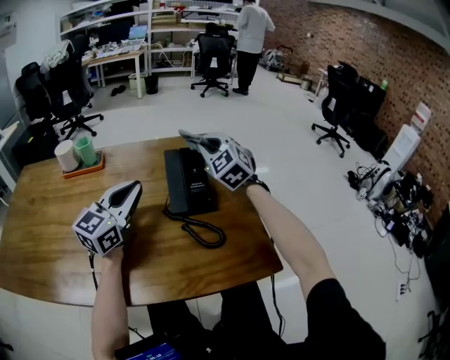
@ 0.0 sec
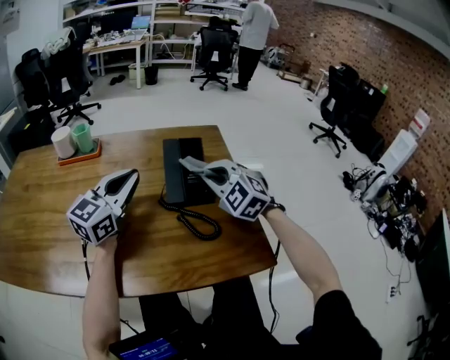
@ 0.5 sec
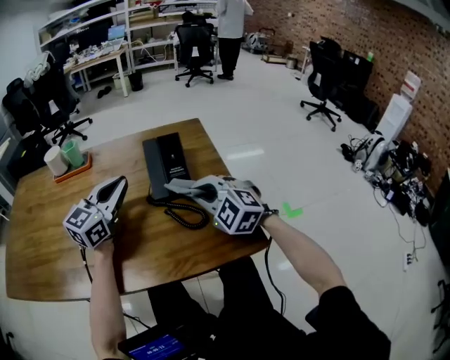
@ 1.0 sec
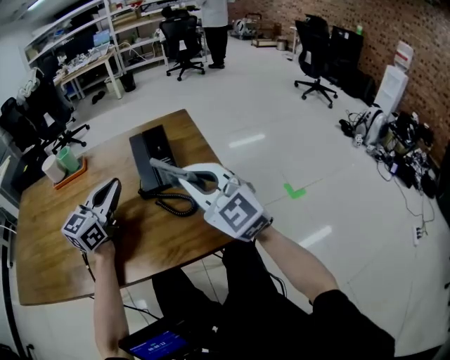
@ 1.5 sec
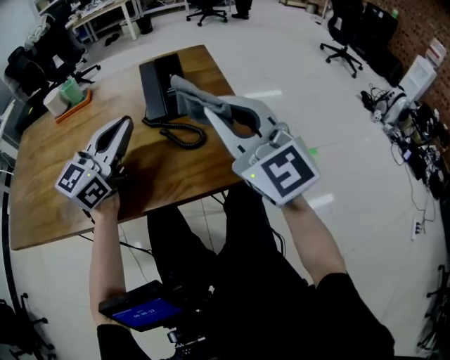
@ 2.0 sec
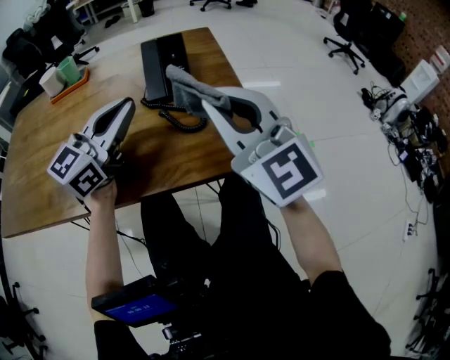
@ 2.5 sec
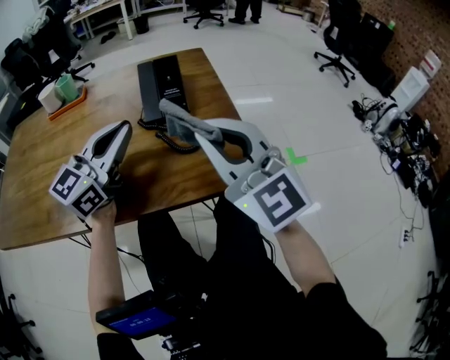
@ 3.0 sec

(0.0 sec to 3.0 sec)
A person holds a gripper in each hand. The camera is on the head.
0.0 sec - 1.5 sec: The right gripper moves backward, approximately 25 cm, and rotates about 30 degrees.
1.5 sec - 3.0 sec: Both grippers move backward, approximately 5 cm.

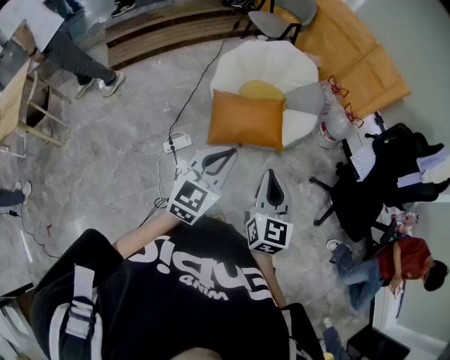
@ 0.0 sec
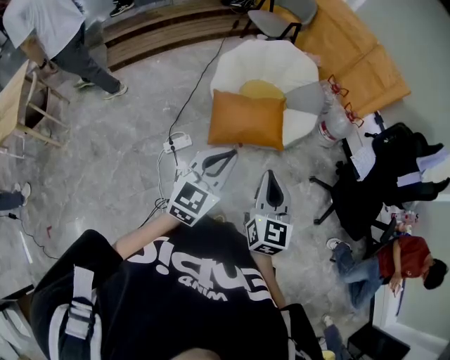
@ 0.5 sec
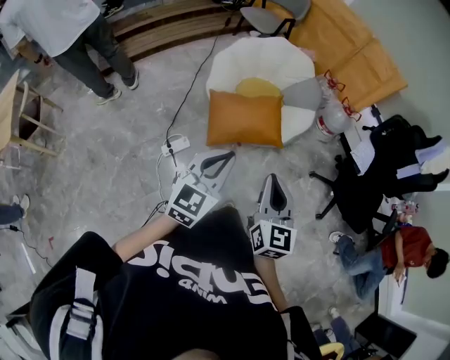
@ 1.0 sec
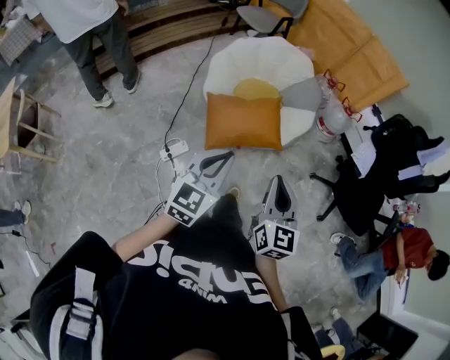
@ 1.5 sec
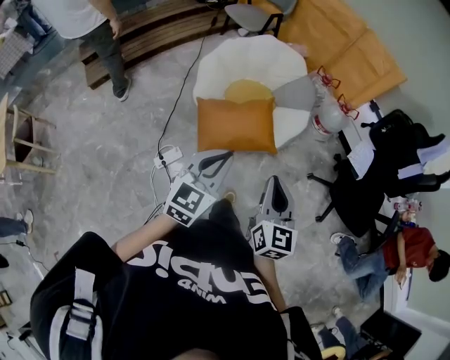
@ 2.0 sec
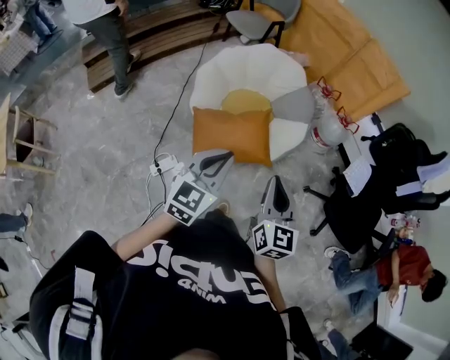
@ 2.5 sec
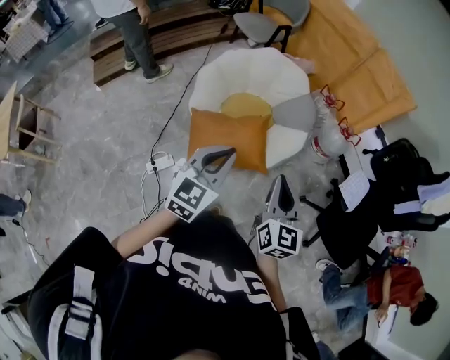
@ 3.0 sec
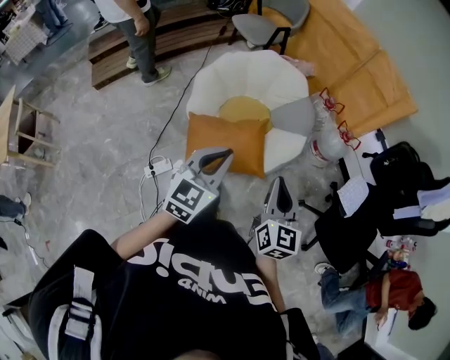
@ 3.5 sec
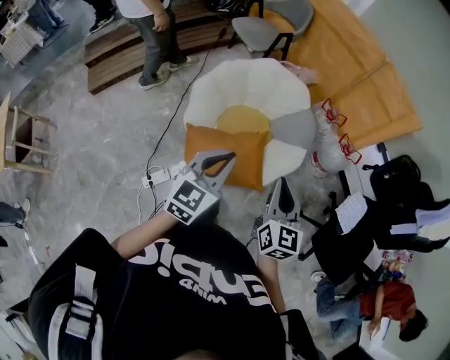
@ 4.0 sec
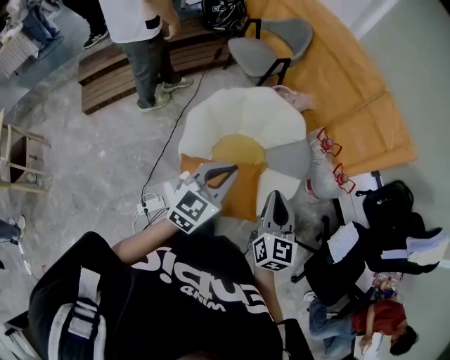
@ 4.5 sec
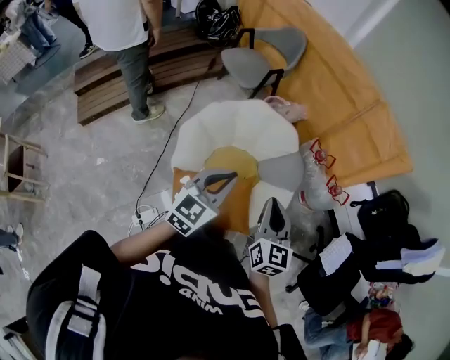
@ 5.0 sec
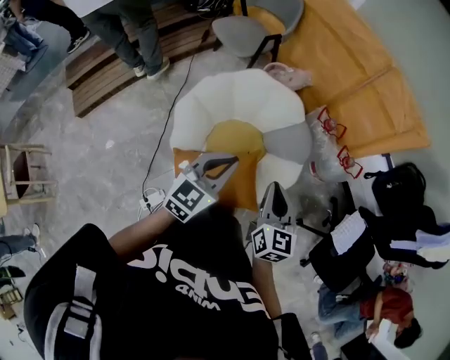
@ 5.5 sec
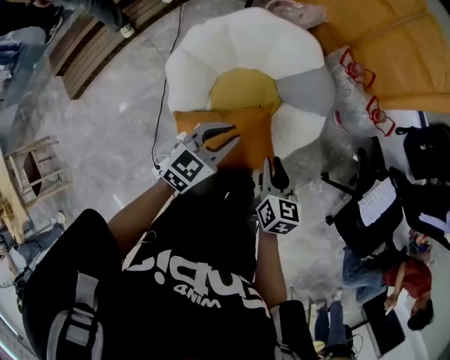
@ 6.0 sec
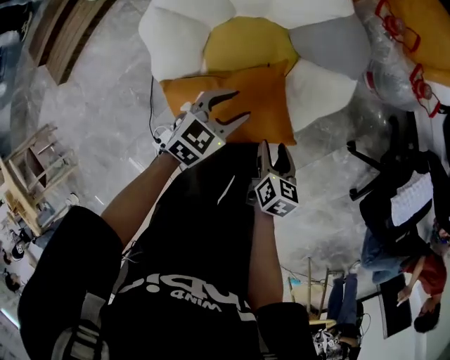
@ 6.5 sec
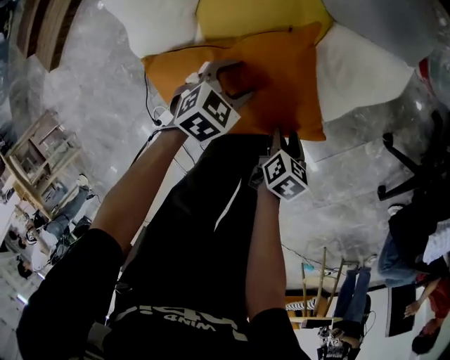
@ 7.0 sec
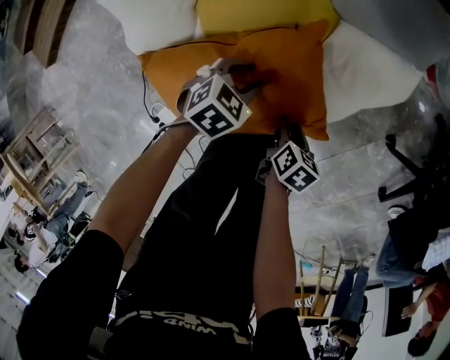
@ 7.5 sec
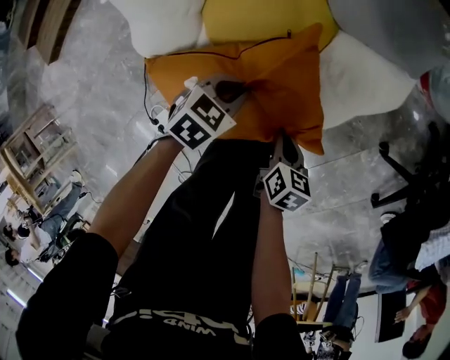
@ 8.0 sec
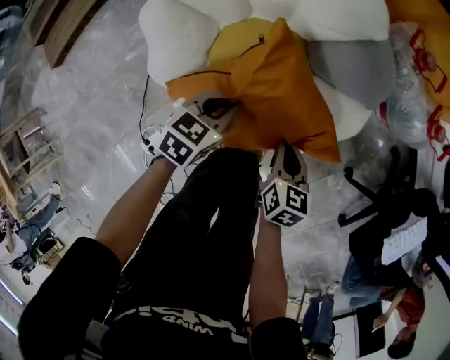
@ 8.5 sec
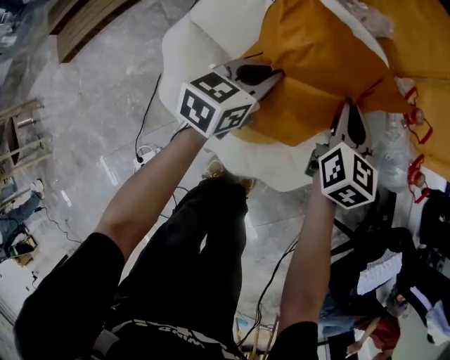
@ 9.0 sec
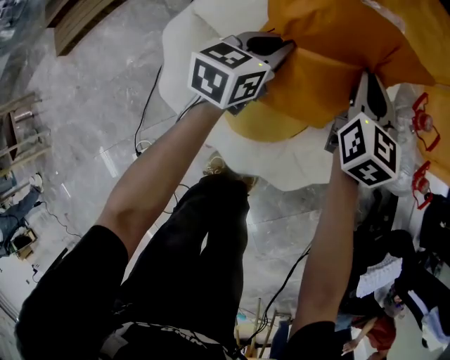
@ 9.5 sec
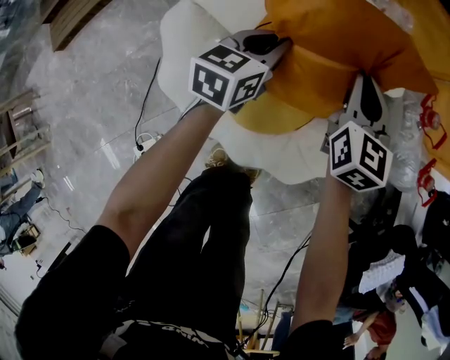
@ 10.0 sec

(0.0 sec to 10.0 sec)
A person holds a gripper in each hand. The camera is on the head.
0.0 sec - 2.0 sec: The two grippers go about 10 cm forward.
2.0 sec - 4.0 sec: Both grippers travel together forward, roughly 25 cm.
4.0 sec - 6.0 sec: The left gripper travels forward and downward by about 30 cm, and changes its angle by approximately 30 degrees; the right gripper travels downward and forward by approximately 30 cm, and rotates some 30 degrees.
6.0 sec - 8.0 sec: Both grippers travel together downward, roughly 40 cm. The left gripper changes its angle by approximately 40 degrees, and opens and closes again. Meanwhile the right gripper changes its angle by some 30 degrees, and opens, then closes again.
8.0 sec - 10.0 sec: The right gripper moves forward and upward, some 50 cm, and tilts its fingers approximately 30 degrees upward, while the left gripper heads forward, upward and to the left, covering about 35 cm, and tilts its fingers roughly 30 degrees upward.

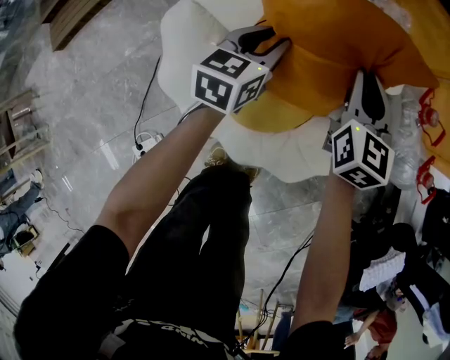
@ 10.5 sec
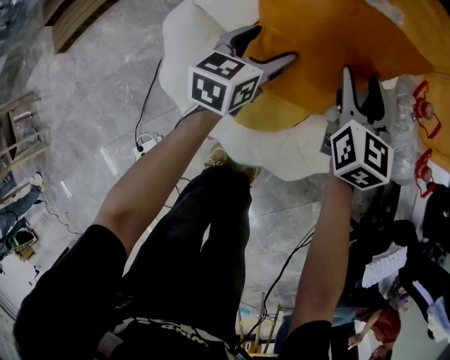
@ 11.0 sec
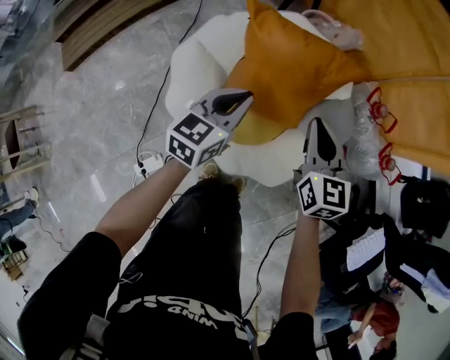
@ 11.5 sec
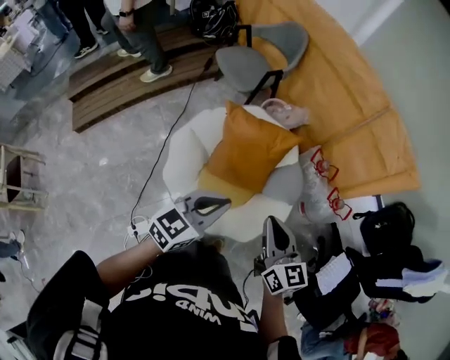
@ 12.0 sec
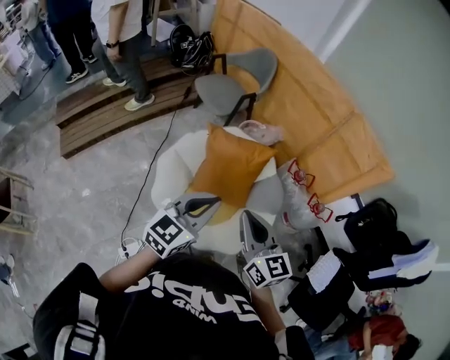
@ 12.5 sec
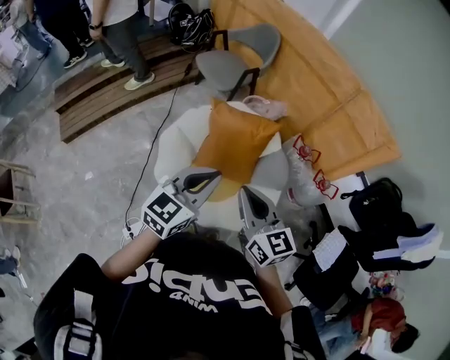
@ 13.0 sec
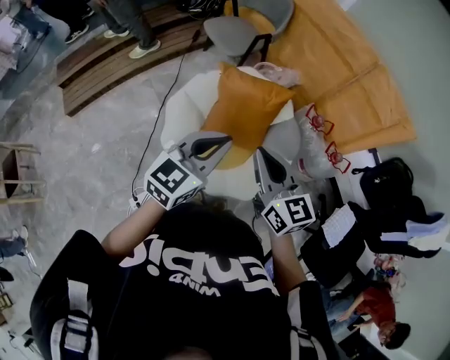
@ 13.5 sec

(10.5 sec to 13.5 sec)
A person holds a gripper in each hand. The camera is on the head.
10.5 sec - 12.0 sec: The two grippers go approximately 50 cm upward and backward. The left gripper turns by some 30 degrees, and opens and closes again. Meanwhile the right gripper swivels approximately 20 degrees, and opens, then closes again.
12.0 sec - 13.5 sec: The left gripper shifts about 5 cm upward; the right gripper travels to the left and upward by about 10 cm.

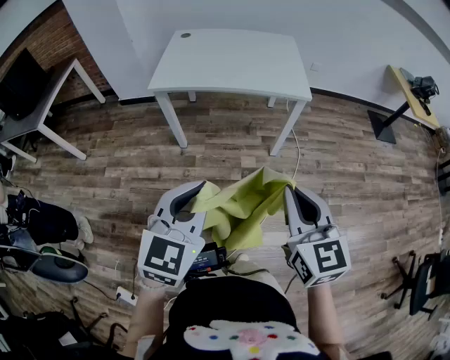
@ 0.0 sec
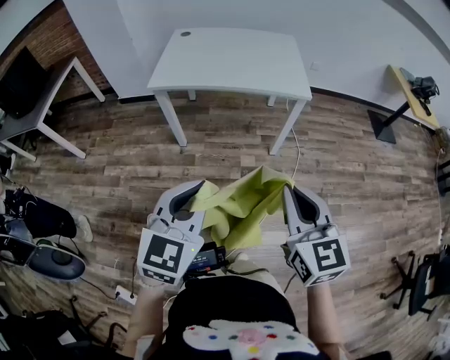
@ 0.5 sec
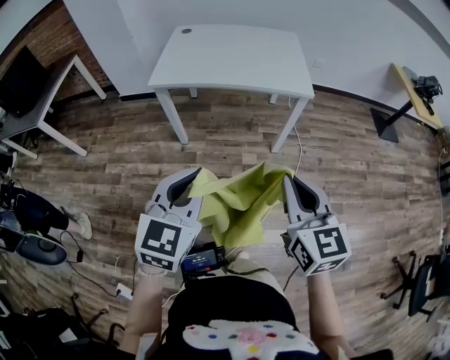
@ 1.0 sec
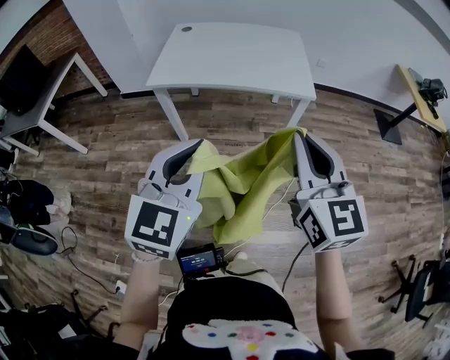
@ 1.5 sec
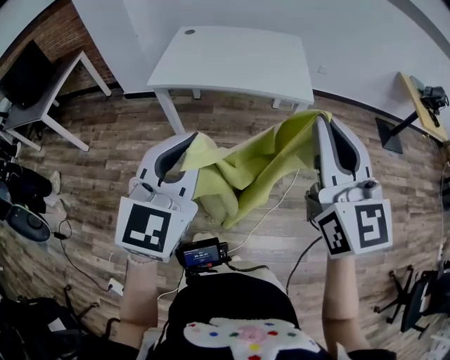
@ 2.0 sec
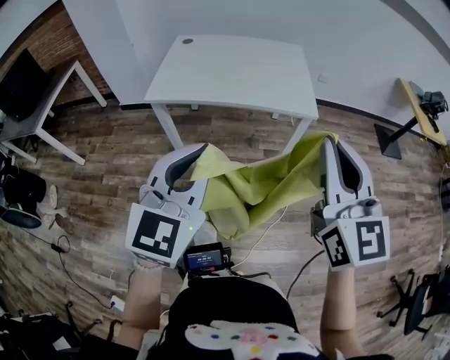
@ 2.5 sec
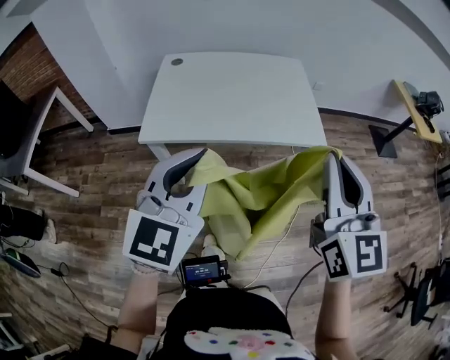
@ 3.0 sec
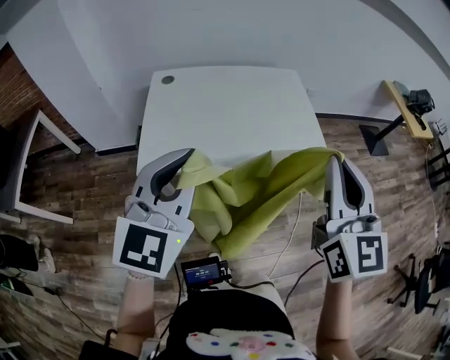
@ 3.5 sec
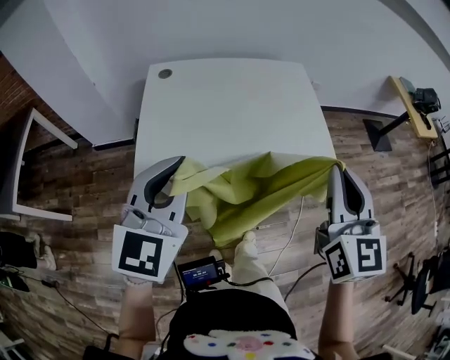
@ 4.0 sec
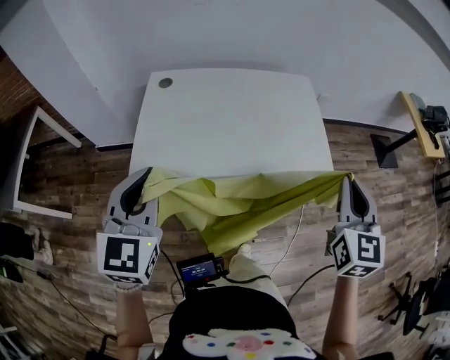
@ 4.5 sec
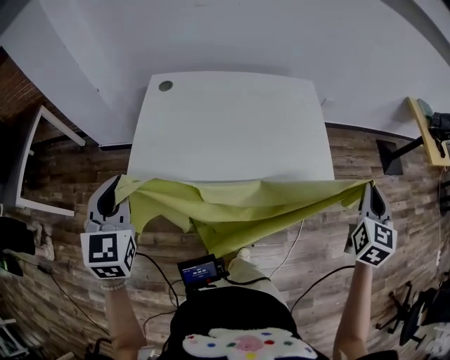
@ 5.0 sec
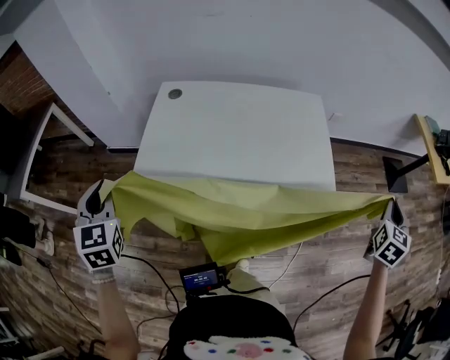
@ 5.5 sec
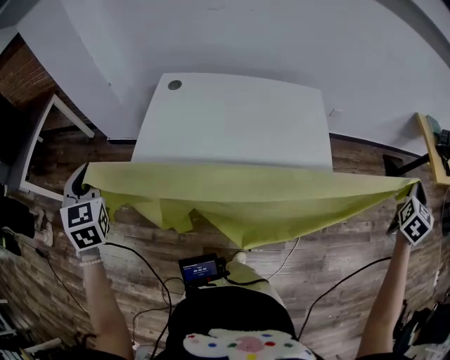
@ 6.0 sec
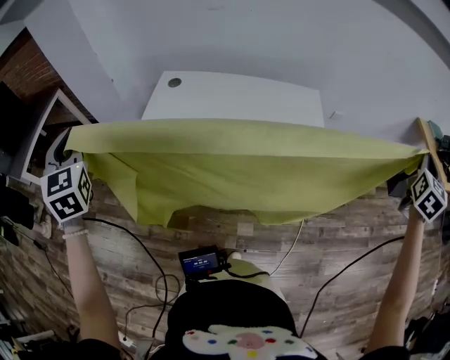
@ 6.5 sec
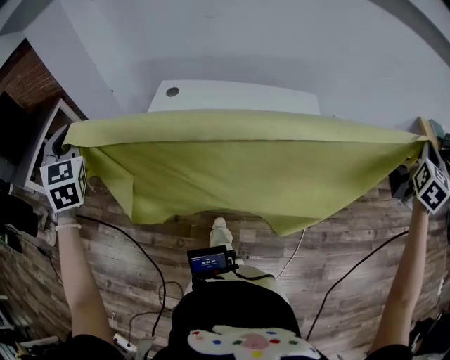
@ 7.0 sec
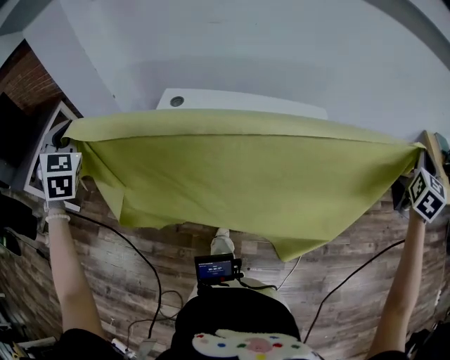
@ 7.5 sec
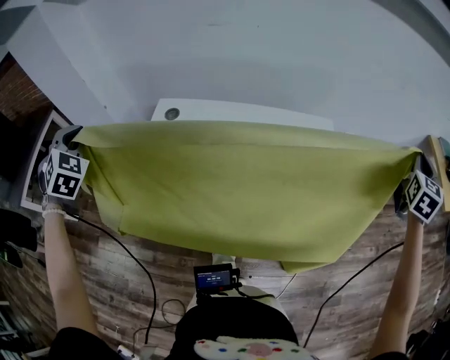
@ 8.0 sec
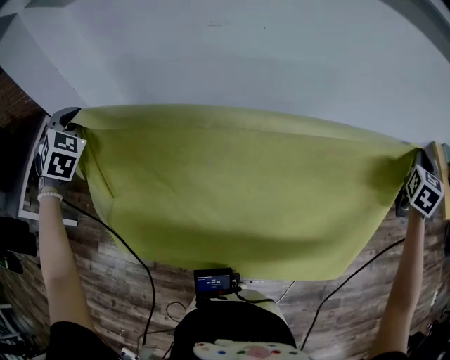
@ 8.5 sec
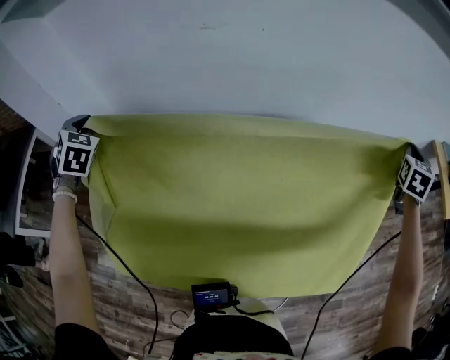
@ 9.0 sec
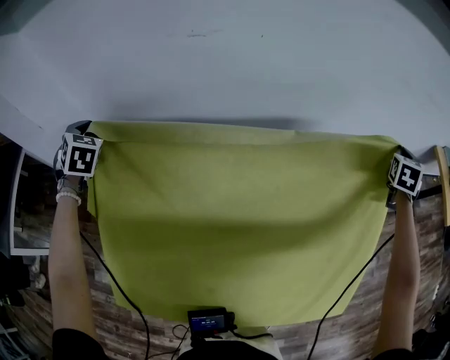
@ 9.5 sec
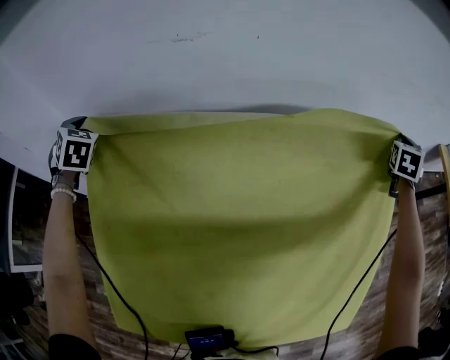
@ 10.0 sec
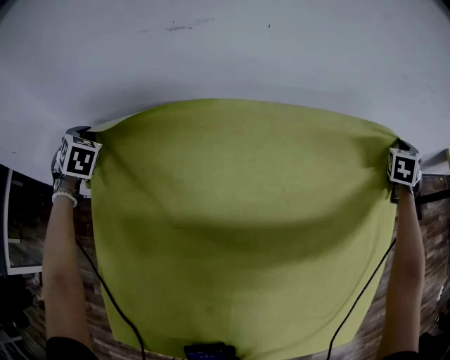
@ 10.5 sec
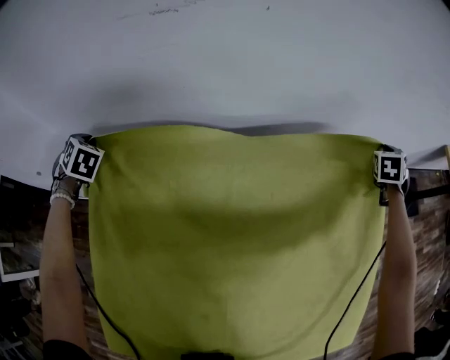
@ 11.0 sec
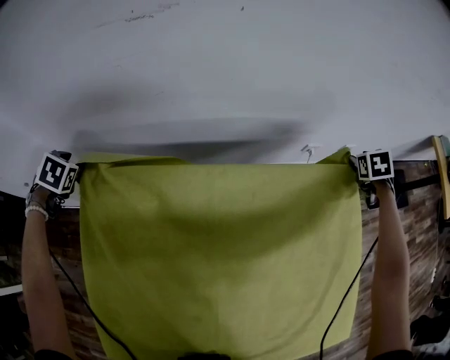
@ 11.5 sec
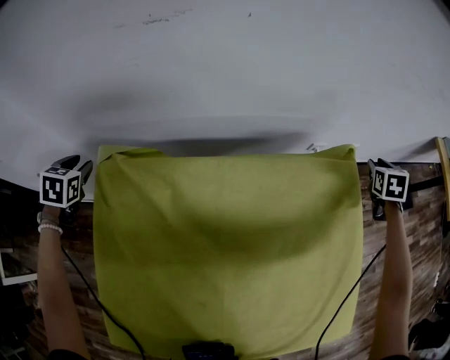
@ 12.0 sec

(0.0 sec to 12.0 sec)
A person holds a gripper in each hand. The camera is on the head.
0.0 sec - 2.0 sec: The right gripper goes some 15 cm upward and forward, and rotates approximately 20 degrees. Meanwhile the left gripper heads upward and forward, covering about 10 cm.
2.0 sec - 4.0 sec: The grippers both shift forward and to the left by about 35 cm. The right gripper rotates some 30 degrees.
4.0 sec - 6.0 sec: The right gripper moves to the right and forward, about 50 cm, and swivels some 40 degrees, while the left gripper moves to the left, roughly 20 cm, and rotates approximately 50 degrees.
6.0 sec - 8.0 sec: The grippers both shift forward by some 25 cm. The left gripper turns by roughly 40 degrees.
8.0 sec - 10.0 sec: The right gripper goes approximately 35 cm forward and downward, and turns by roughly 20 degrees, while the left gripper travels forward by approximately 40 cm.
10.0 sec - 12.0 sec: The two grippers go some 15 cm downward. The left gripper turns by roughly 30 degrees, and opens its fingers. Meanwhile the right gripper turns by some 20 degrees, and opens.
